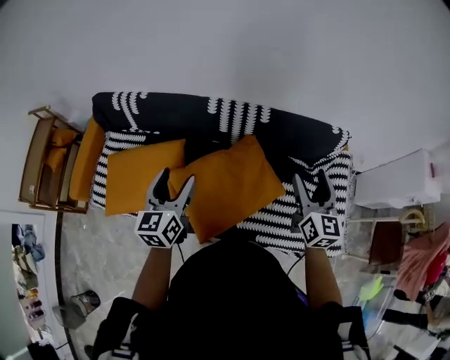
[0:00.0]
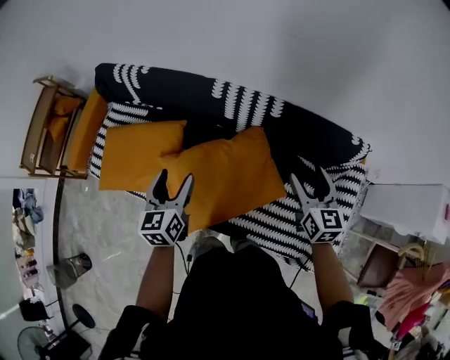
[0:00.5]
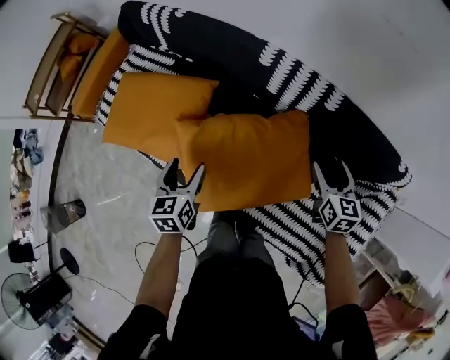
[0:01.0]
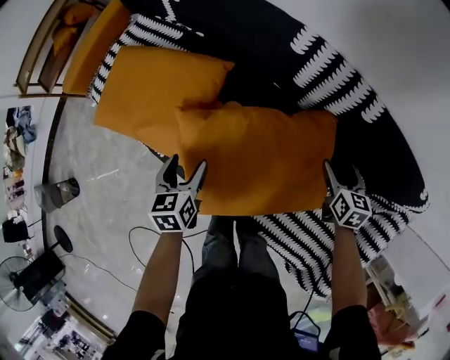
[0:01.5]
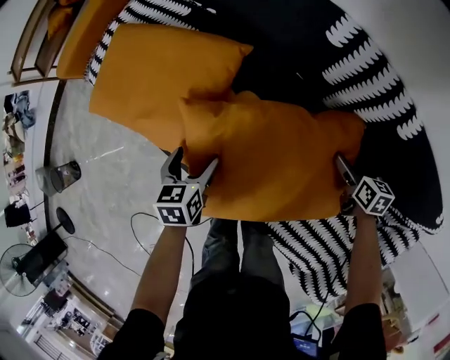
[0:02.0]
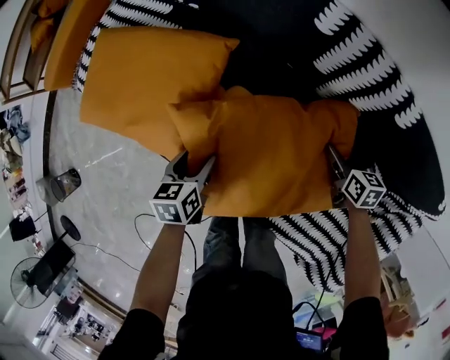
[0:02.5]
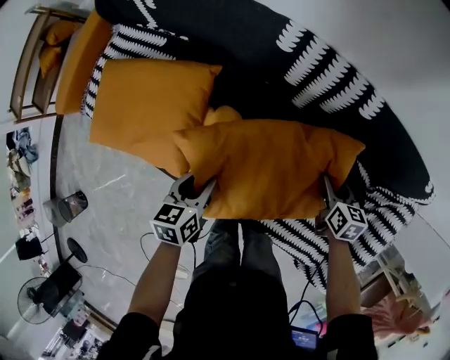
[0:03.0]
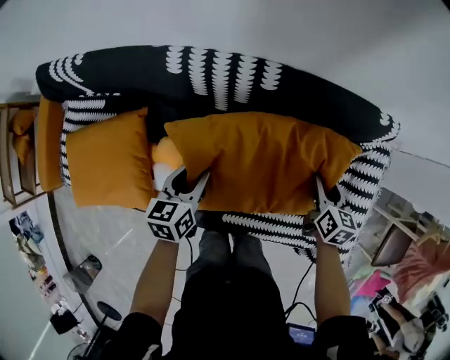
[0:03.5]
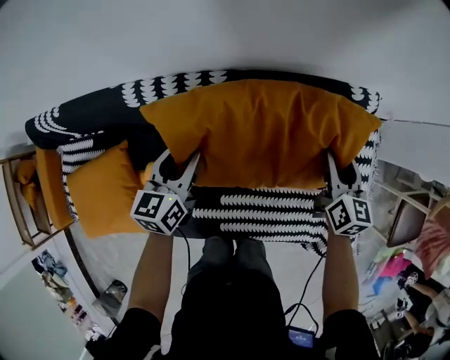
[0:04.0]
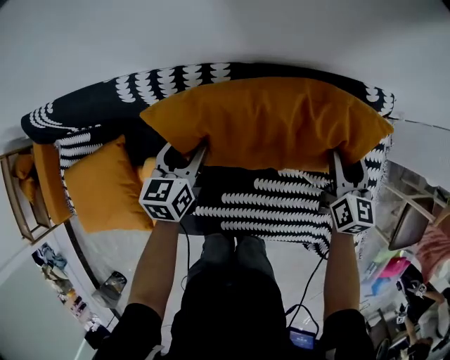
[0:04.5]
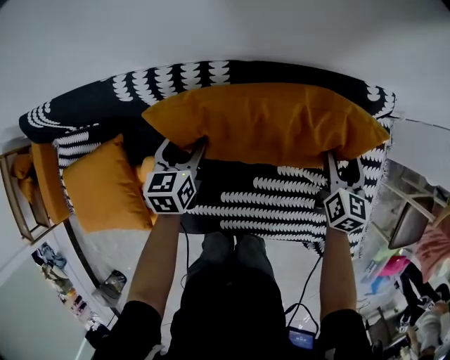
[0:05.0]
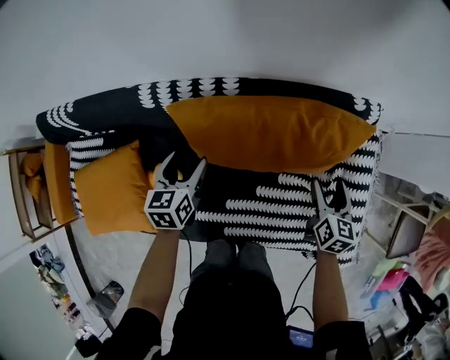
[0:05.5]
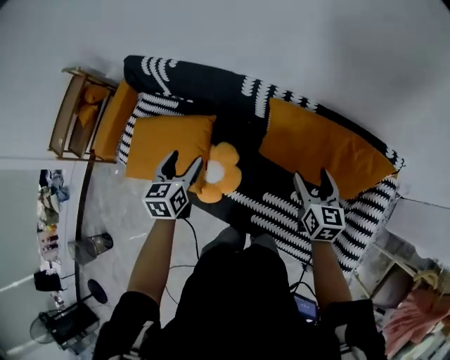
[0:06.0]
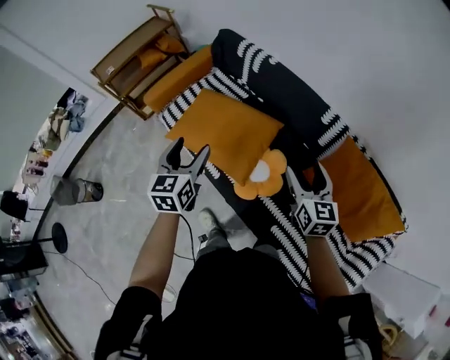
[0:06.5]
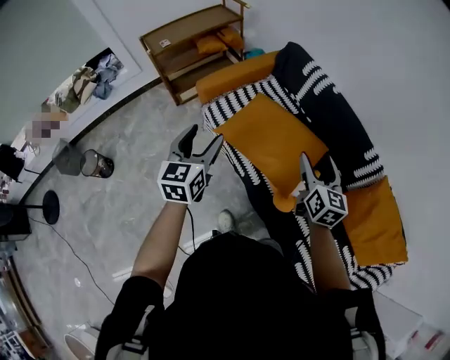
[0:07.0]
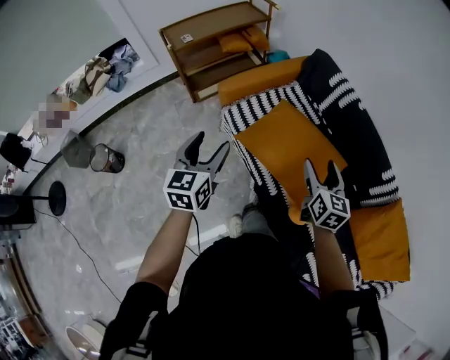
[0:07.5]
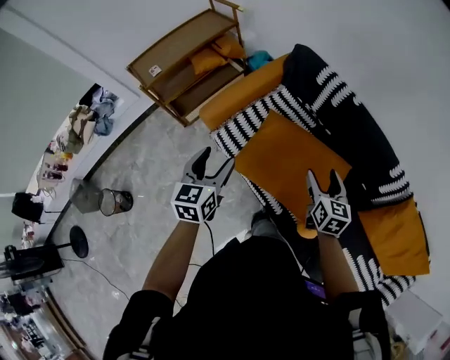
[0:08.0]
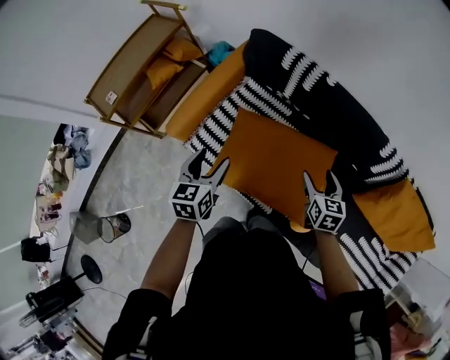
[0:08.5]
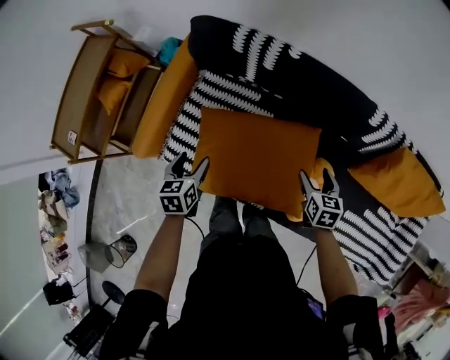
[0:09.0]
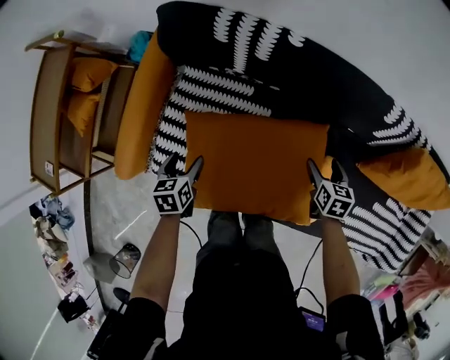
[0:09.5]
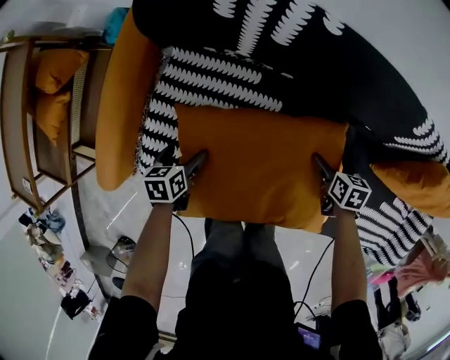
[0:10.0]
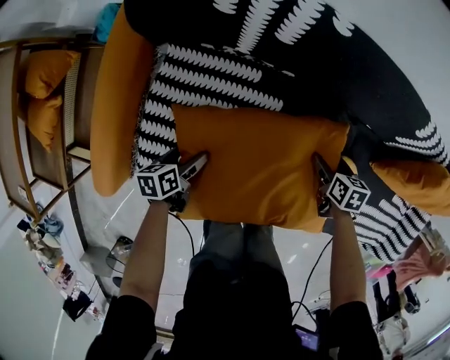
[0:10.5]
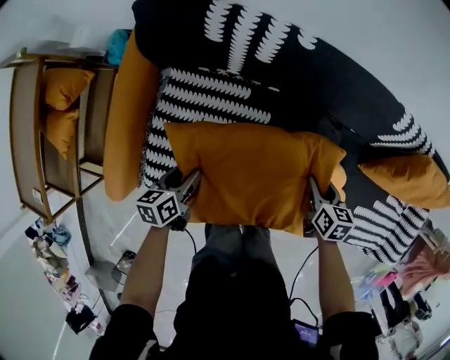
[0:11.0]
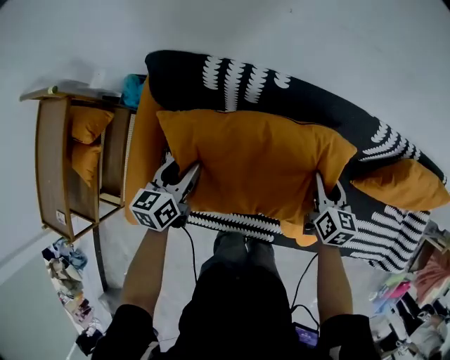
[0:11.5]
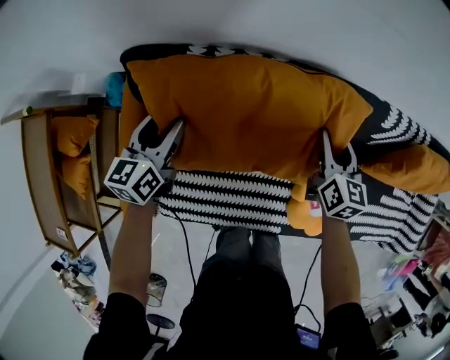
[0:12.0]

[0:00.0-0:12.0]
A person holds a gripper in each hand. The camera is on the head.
0:00.0 to 0:02.0: The grippers both shift downward by approximately 40 cm. The left gripper points its fingers some 40 degrees further downward. The right gripper points its fingers approximately 40 degrees further downward.
0:02.0 to 0:04.0: The right gripper ends up about 35 cm from where it was, rotates some 50 degrees, and closes its fingers; the left gripper ends up approximately 40 cm from where it was, turns by about 50 degrees, and closes its fingers.
0:04.0 to 0:06.0: The left gripper shifts by approximately 30 cm, turns by approximately 30 degrees, and opens up. The right gripper changes place by approximately 25 cm, and turns by some 30 degrees.
0:06.0 to 0:08.0: The two grippers travel together, roughly 60 cm. The right gripper rotates about 20 degrees. The left gripper rotates some 20 degrees.
0:08.0 to 0:10.0: The grippers both shift downward by roughly 40 cm. The left gripper angles its fingers downward, by about 30 degrees. The right gripper tilts its fingers about 40 degrees downward.
0:10.0 to 0:12.0: The right gripper goes approximately 25 cm upward and forward, angles its fingers upward, by about 40 degrees, and closes, while the left gripper heads forward and upward, covering about 35 cm, tilts its fingers some 30 degrees upward, and closes.

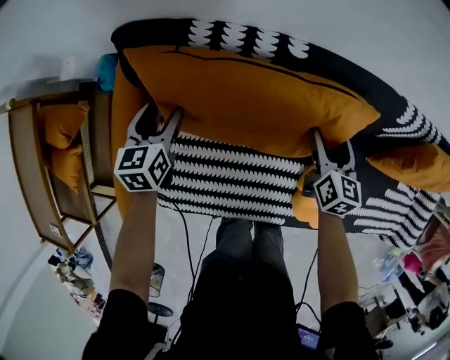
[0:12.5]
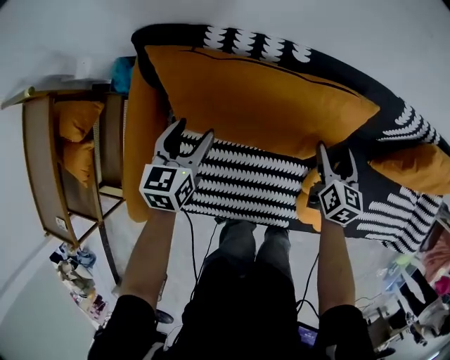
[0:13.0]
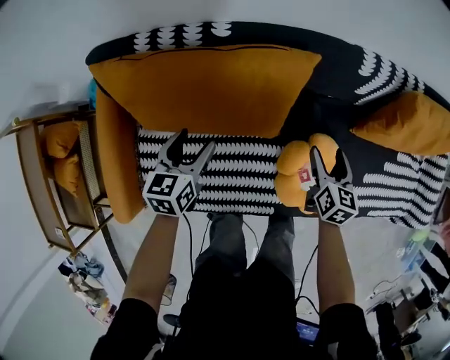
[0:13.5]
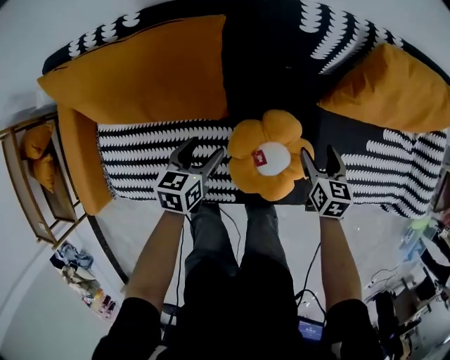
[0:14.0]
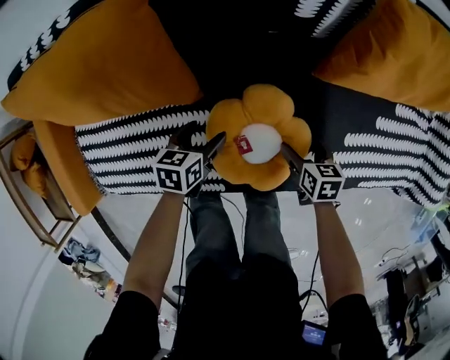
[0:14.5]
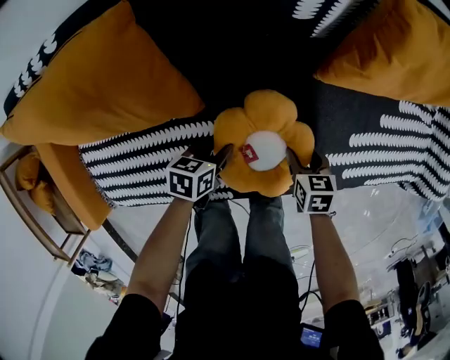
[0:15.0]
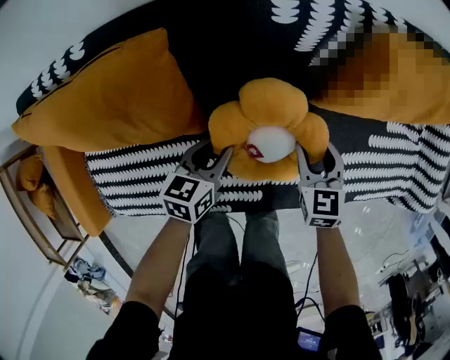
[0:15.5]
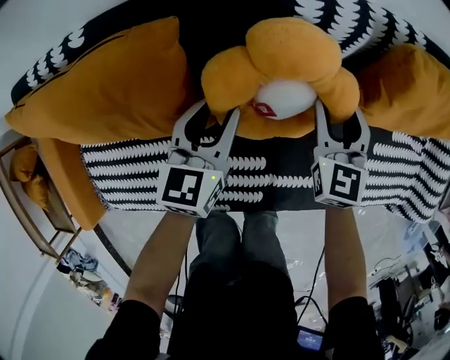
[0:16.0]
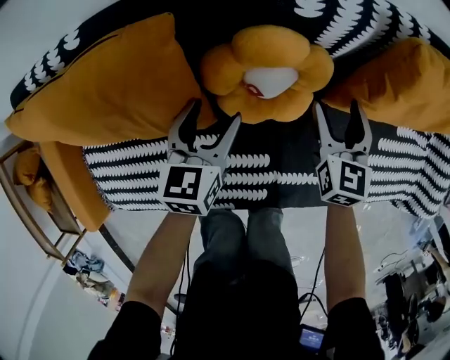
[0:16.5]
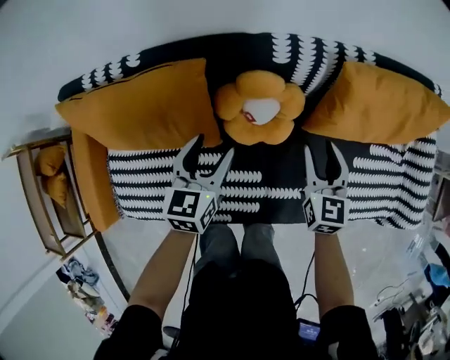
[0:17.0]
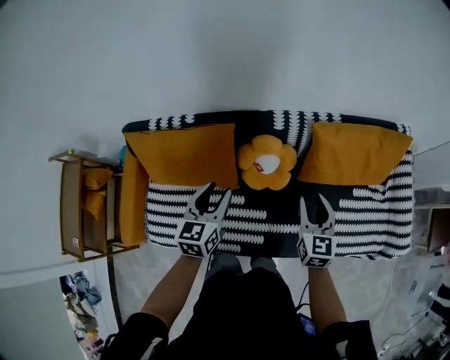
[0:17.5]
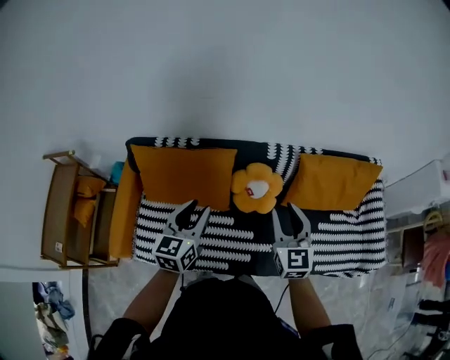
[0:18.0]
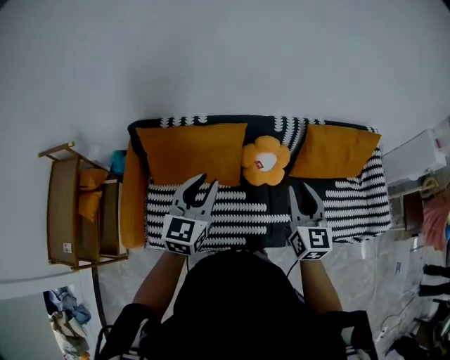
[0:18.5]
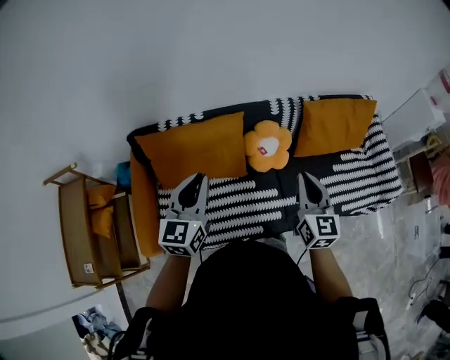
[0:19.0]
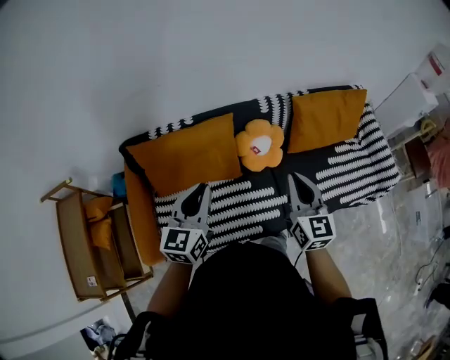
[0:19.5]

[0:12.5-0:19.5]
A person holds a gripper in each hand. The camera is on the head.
0:12.5 to 0:14.5: The two grippers travel together, to the right and backward, approximately 40 cm. The right gripper heads downward, covering approximately 20 cm, and turns by some 30 degrees. Meanwhile the left gripper rotates about 40 degrees.
0:14.5 to 0:16.0: The grippers both shift forward and upward by approximately 25 cm. The left gripper rotates roughly 30 degrees, and closes up, while the right gripper tilts its fingers approximately 30 degrees upward, and closes its fingers.
0:16.0 to 0:17.5: The two grippers go roughly 30 cm upward and backward.
0:17.5 to 0:19.5: The right gripper moves to the left, upward and backward, approximately 25 cm; the left gripper travels to the left, backward and upward by approximately 20 cm, and turns by about 20 degrees.

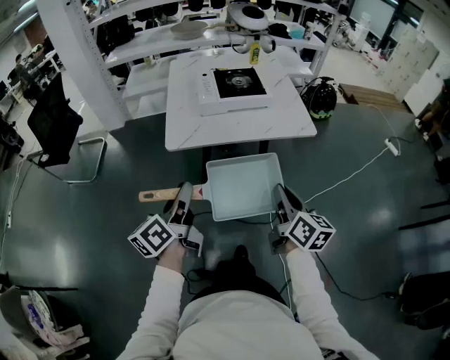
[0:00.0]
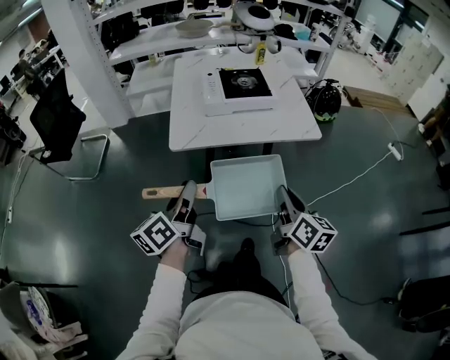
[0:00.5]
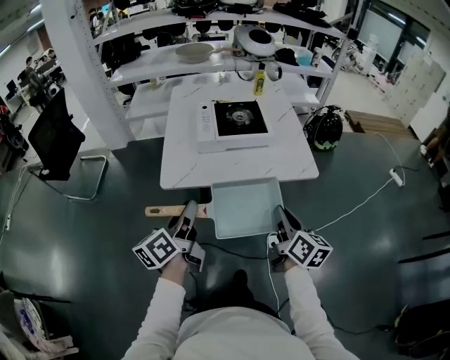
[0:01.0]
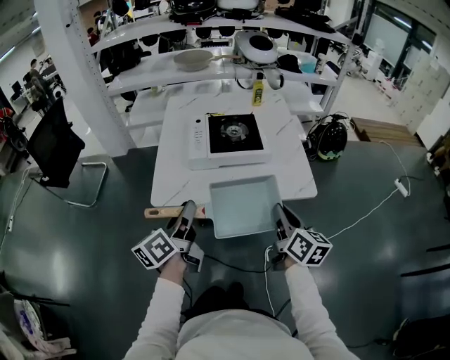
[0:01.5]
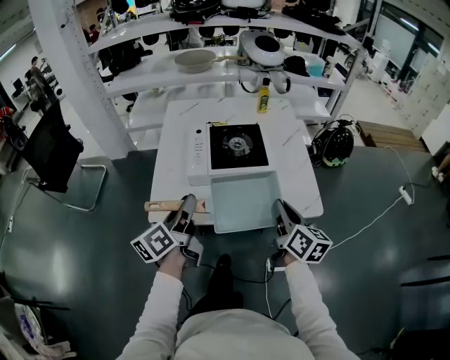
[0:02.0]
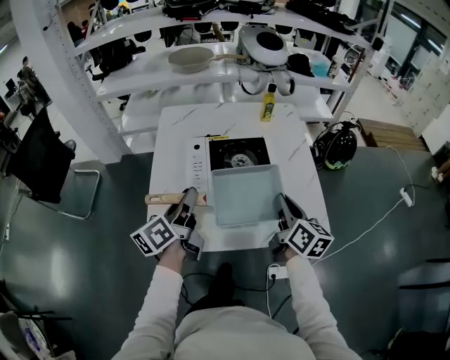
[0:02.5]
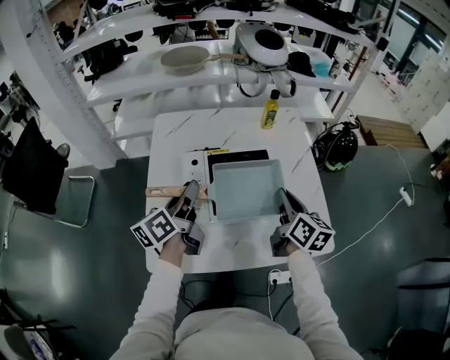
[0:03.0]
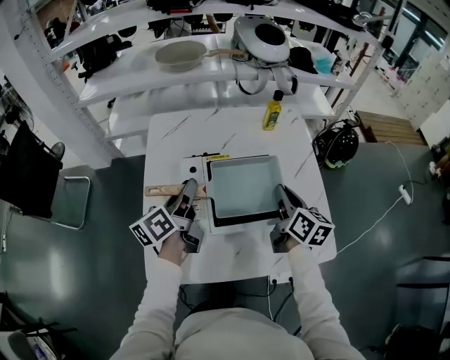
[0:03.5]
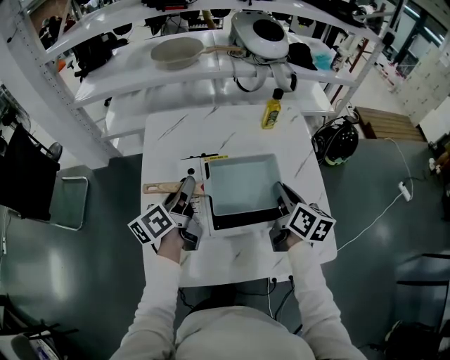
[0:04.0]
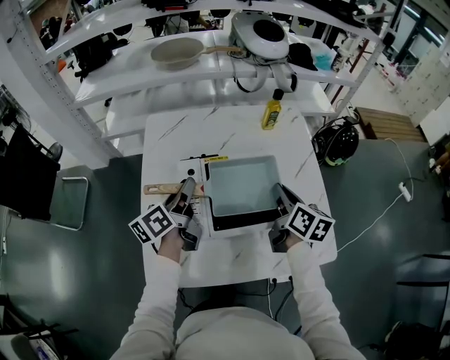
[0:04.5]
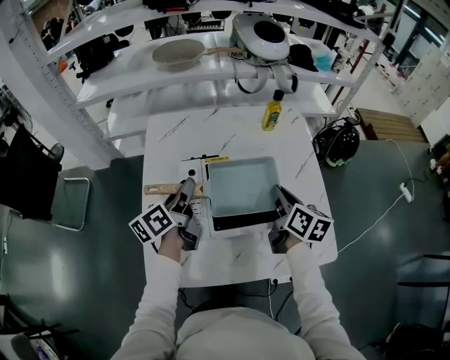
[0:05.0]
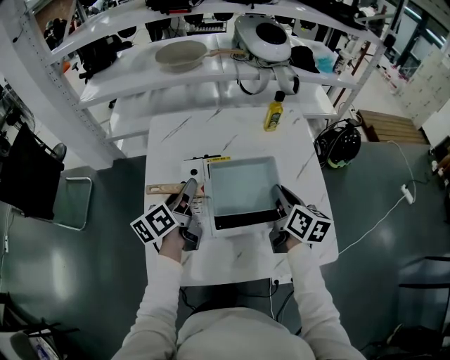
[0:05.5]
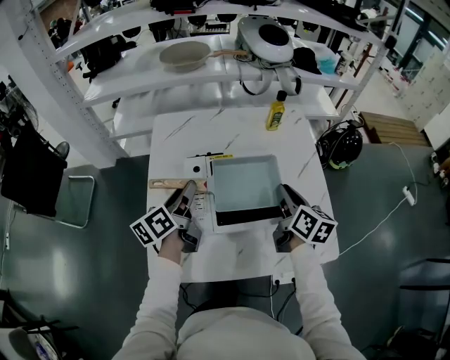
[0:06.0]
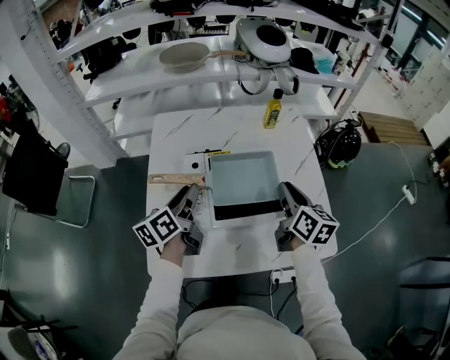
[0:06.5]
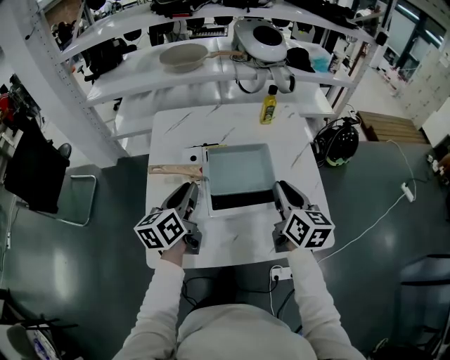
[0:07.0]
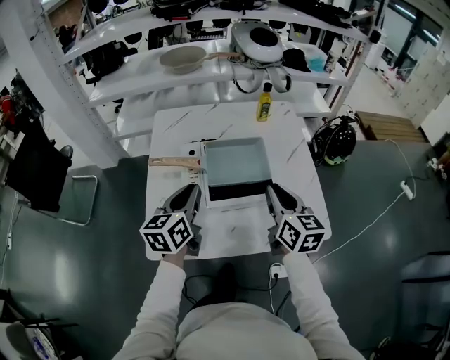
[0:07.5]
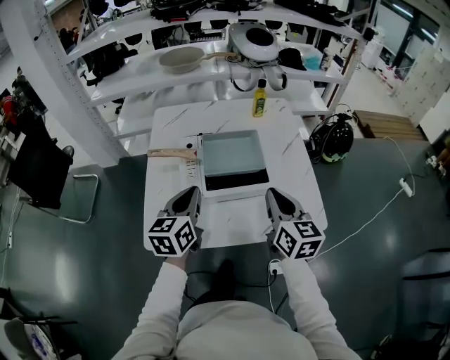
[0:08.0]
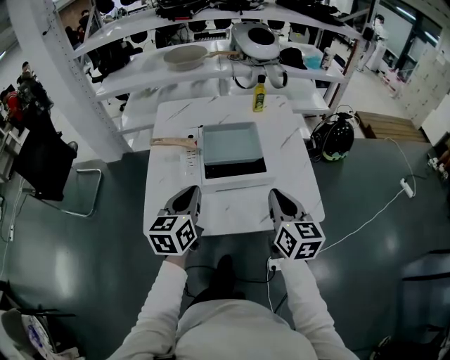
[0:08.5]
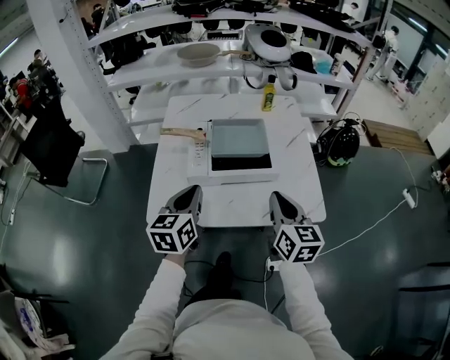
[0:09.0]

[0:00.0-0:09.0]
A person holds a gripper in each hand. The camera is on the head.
0:00.0 to 0:02.0: The grippers both shift forward by about 30 cm.
0:02.0 to 0:04.5: The grippers both shift forward by approximately 30 cm.
0:04.5 to 0:07.0: The right gripper heads backward and upward, covering some 10 cm. Meanwhile the left gripper is displaced backward by some 10 cm, and swivels some 20 degrees.
0:07.0 to 0:09.0: The grippers both shift backward by about 15 cm.
